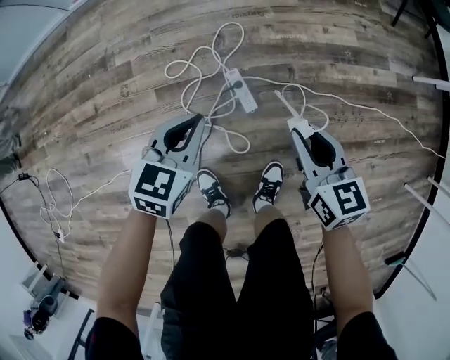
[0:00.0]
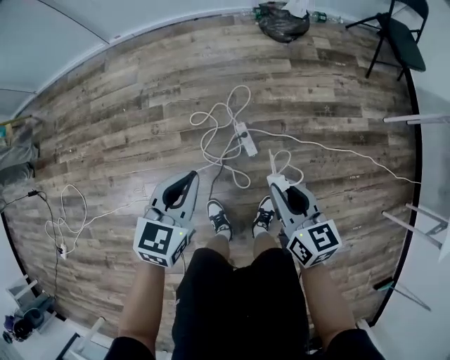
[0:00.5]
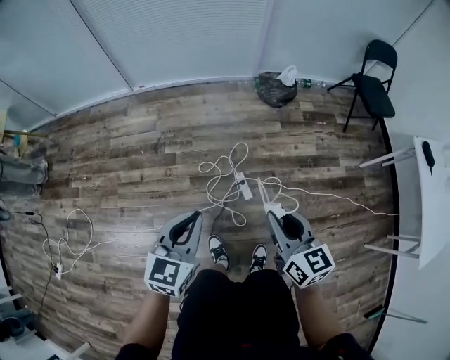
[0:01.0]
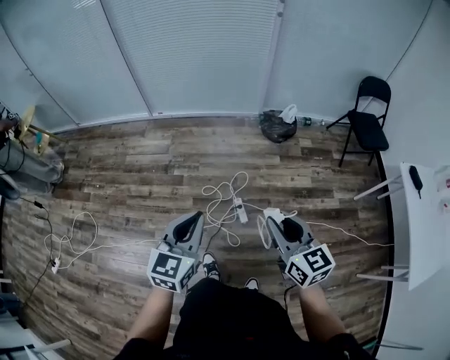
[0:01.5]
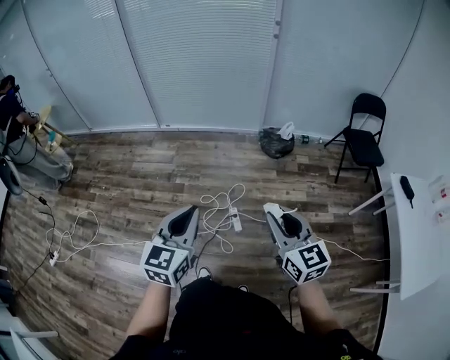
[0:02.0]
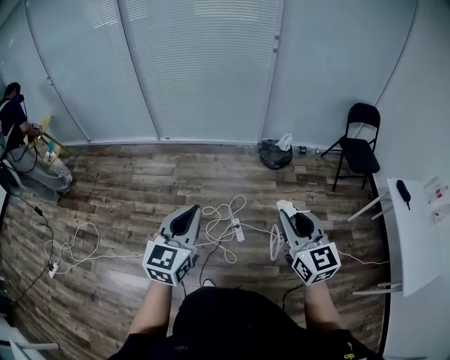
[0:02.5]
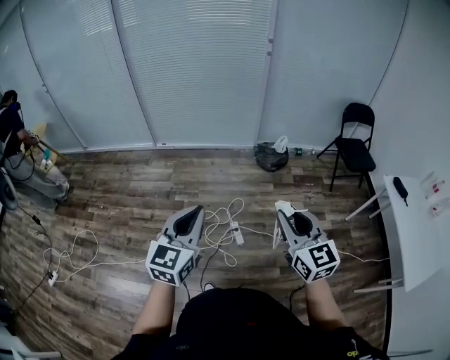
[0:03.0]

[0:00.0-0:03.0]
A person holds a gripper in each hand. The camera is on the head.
0:00.0 to 0:01.5: Both grippers move upward, some 60 cm. The left gripper turns by some 30 degrees, while the right gripper changes its angle by about 20 degrees.
0:01.5 to 0:03.0: The grippers both shift upward and backward by roughly 15 cm.

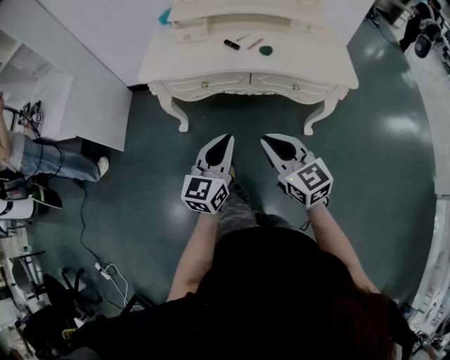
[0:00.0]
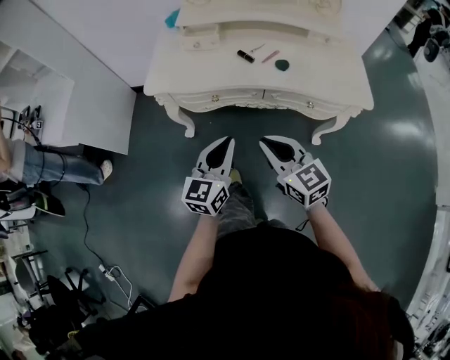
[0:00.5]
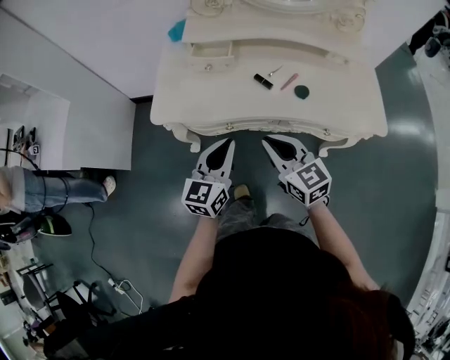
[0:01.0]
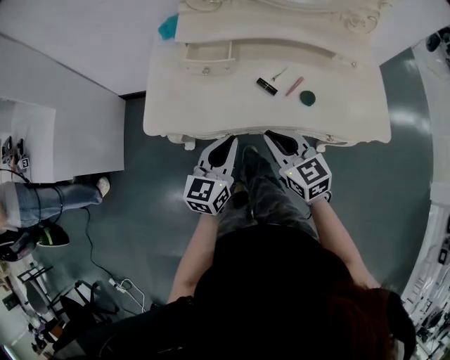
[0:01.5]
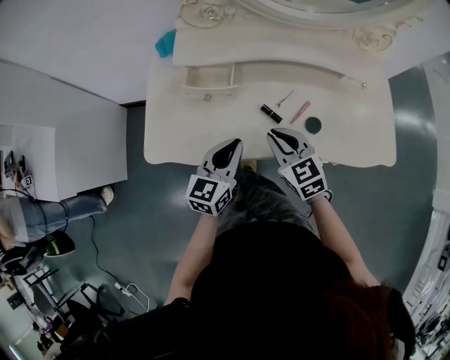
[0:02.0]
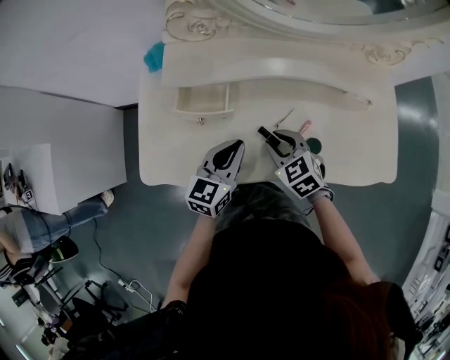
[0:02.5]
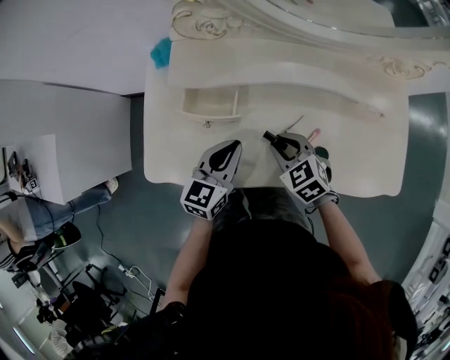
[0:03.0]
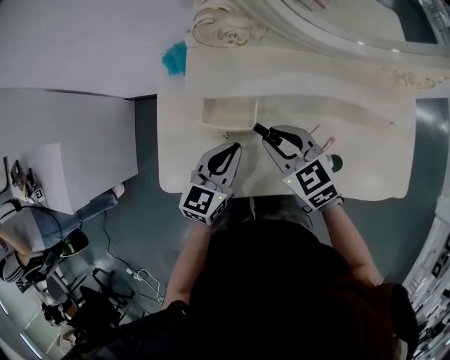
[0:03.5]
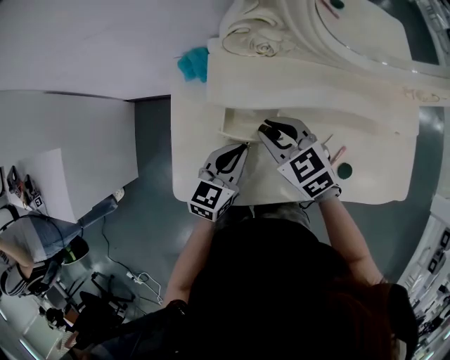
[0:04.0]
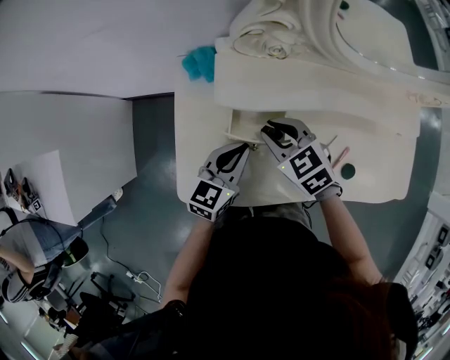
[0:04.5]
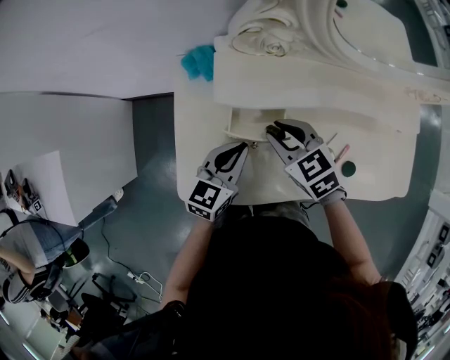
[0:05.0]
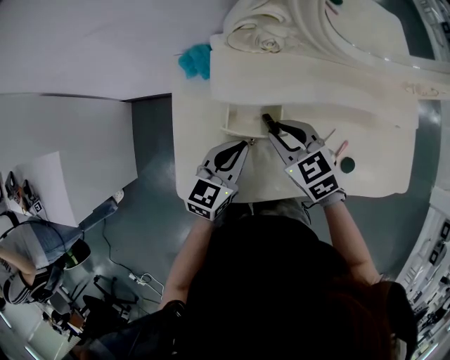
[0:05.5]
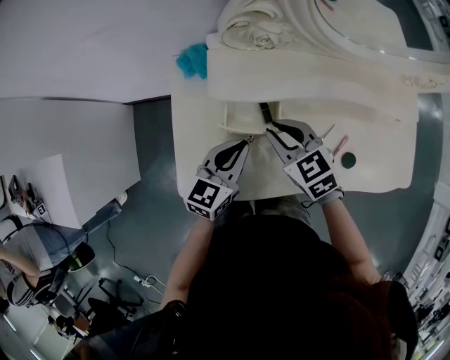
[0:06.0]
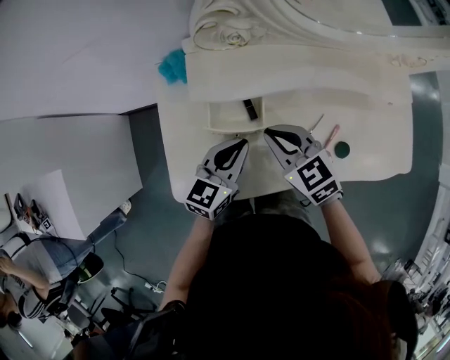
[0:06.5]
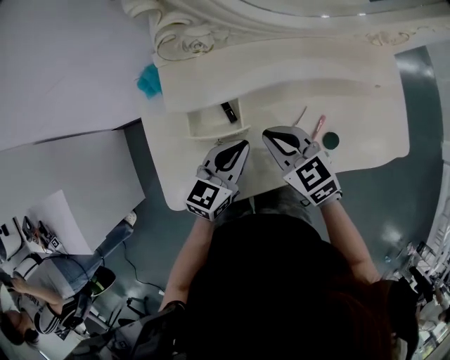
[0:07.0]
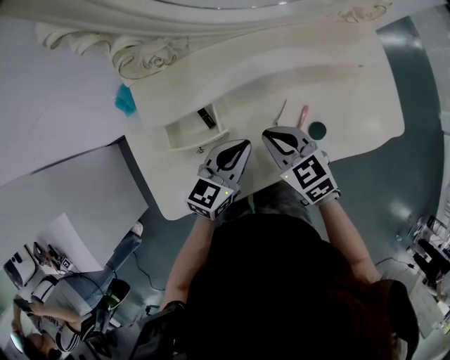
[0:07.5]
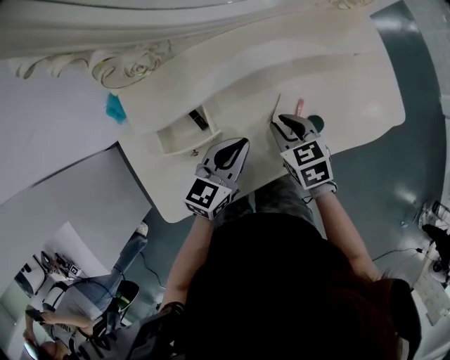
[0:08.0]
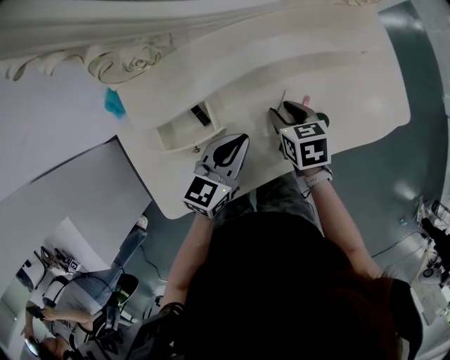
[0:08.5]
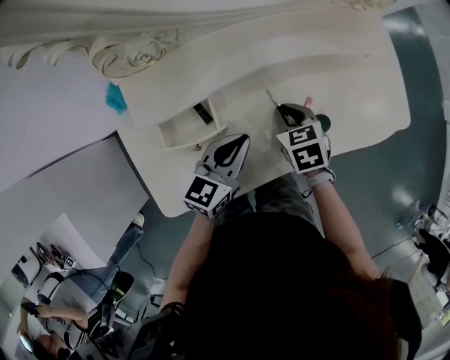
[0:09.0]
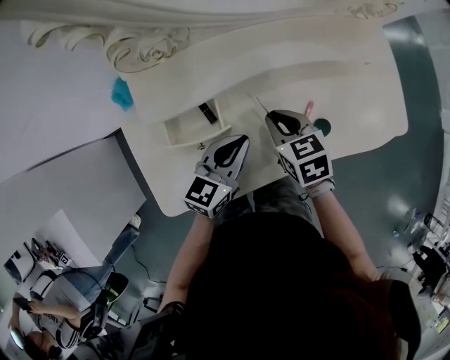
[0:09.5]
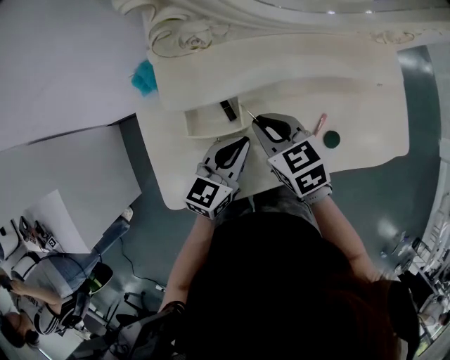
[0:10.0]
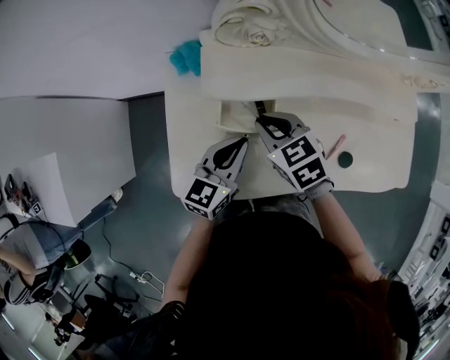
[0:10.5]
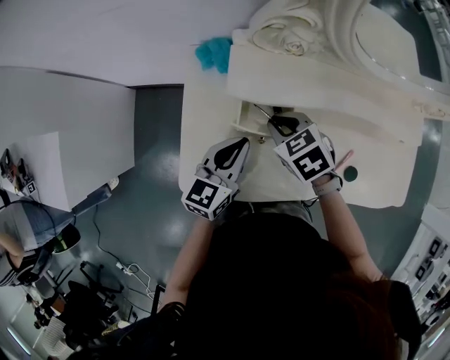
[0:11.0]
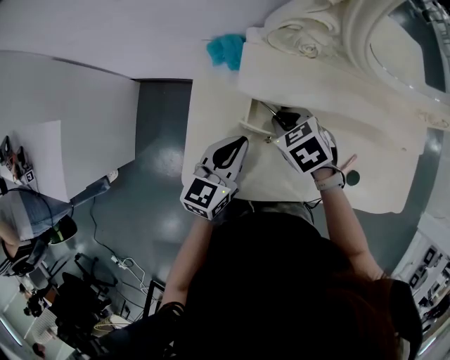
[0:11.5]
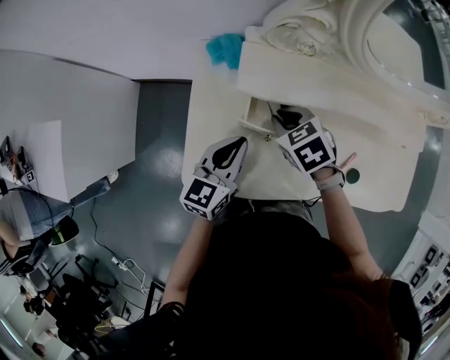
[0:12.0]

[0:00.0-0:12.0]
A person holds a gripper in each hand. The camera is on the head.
0:00.0 to 0:02.0: The grippers both shift forward by about 40 cm. The right gripper changes its angle by roughly 20 degrees.
0:02.0 to 0:04.0: The grippers both shift forward and to the left by about 20 cm.
0:04.0 to 0:06.0: There are only small adjustments of the grippers.
0:06.0 to 0:08.0: The left gripper moves approximately 15 cm, and rotates about 20 degrees, while the right gripper ends up about 20 cm from where it was, and swivels approximately 40 degrees.
0:08.0 to 0:10.0: The right gripper moves to the left and upward, approximately 15 cm. The left gripper goes roughly 5 cm to the left.
0:10.0 to 0:12.0: Both grippers move to the left, about 10 cm. The right gripper turns by about 30 degrees. The left gripper rotates roughly 20 degrees.

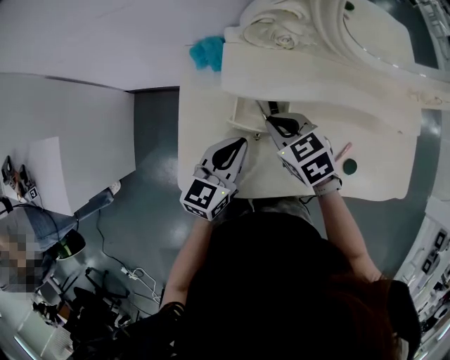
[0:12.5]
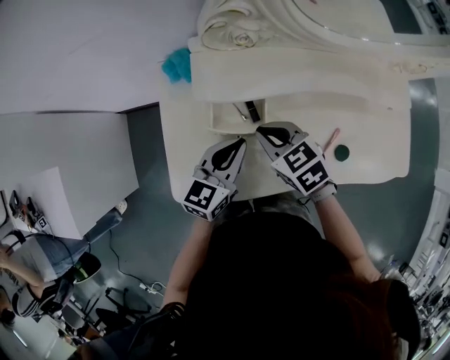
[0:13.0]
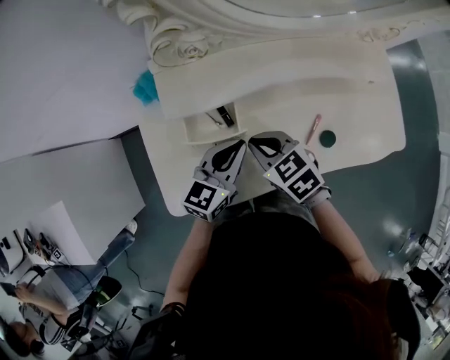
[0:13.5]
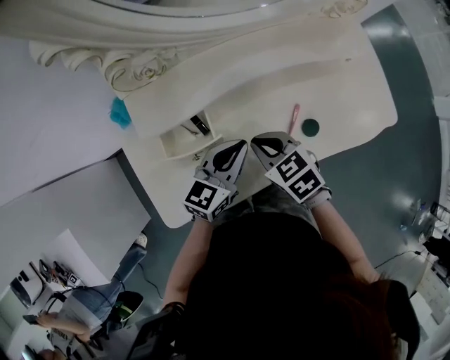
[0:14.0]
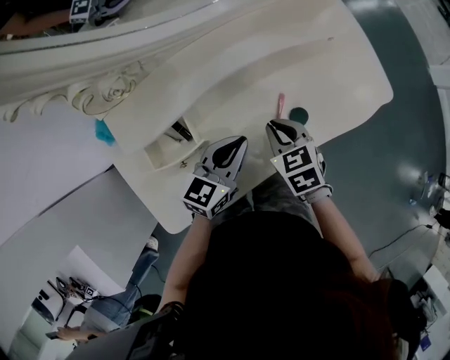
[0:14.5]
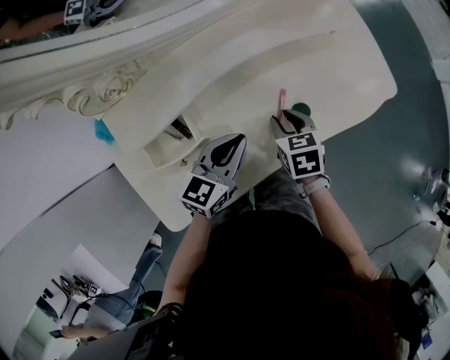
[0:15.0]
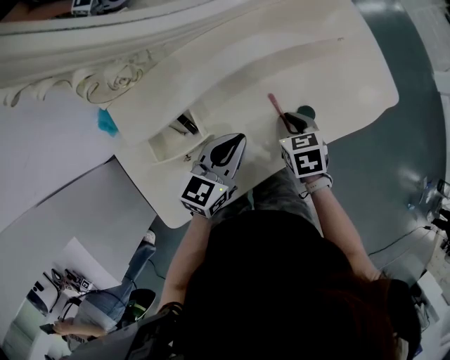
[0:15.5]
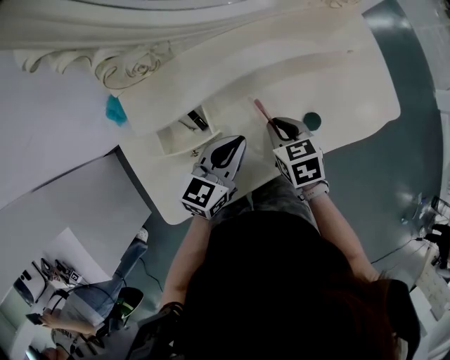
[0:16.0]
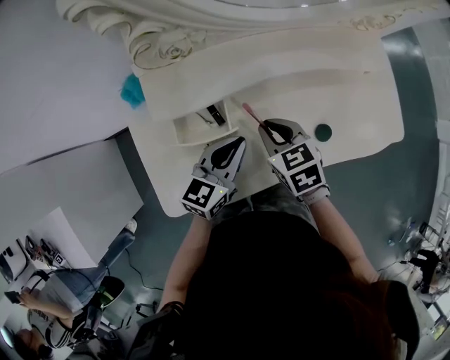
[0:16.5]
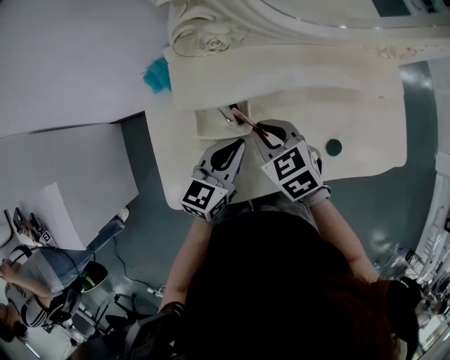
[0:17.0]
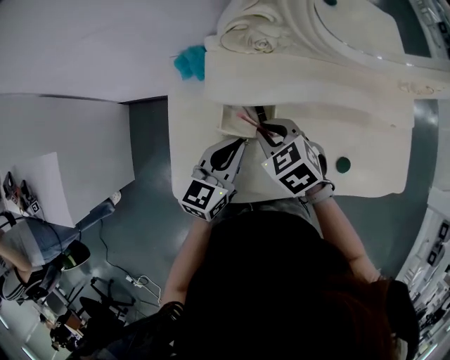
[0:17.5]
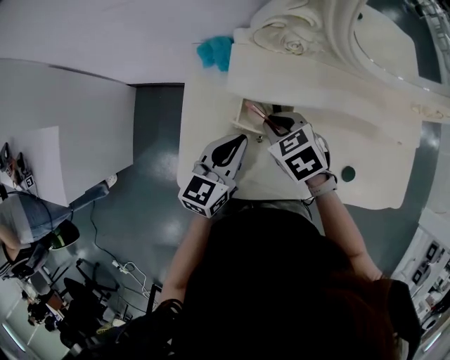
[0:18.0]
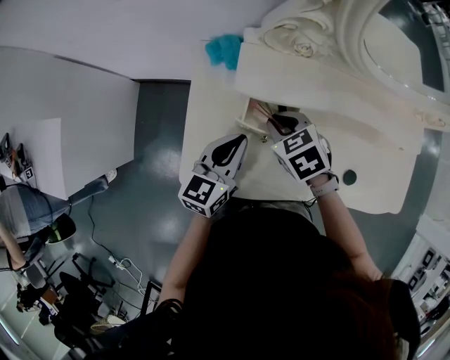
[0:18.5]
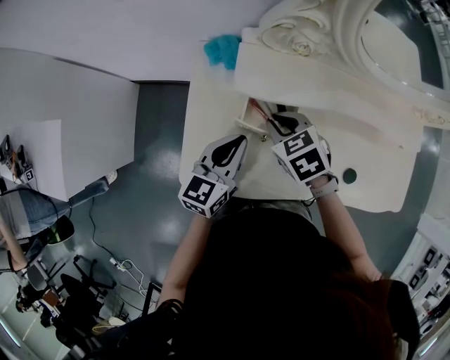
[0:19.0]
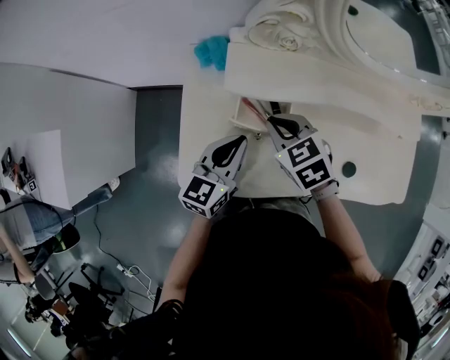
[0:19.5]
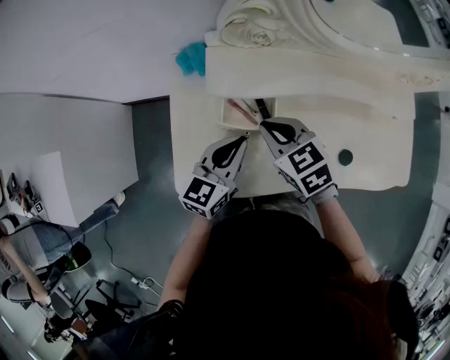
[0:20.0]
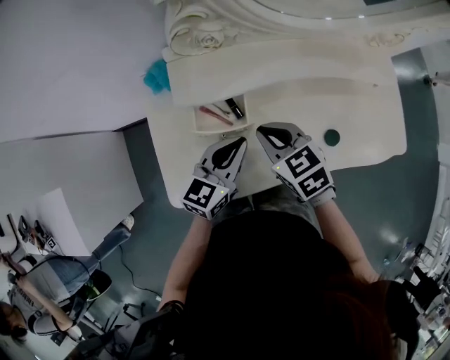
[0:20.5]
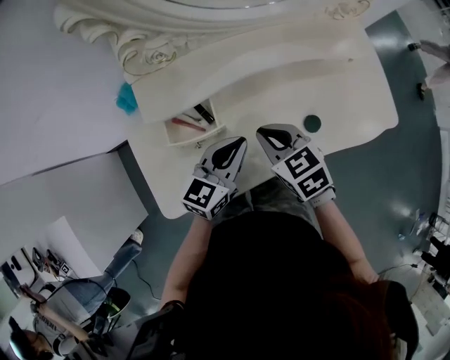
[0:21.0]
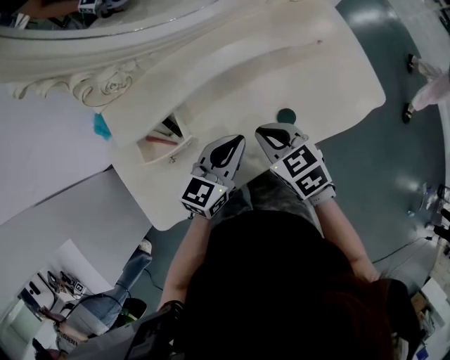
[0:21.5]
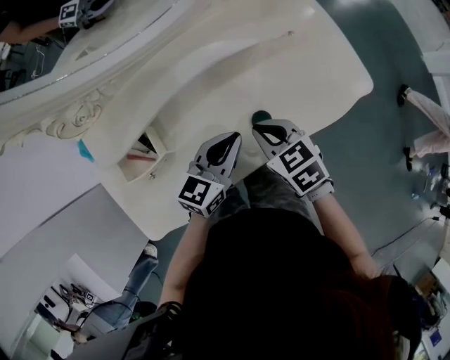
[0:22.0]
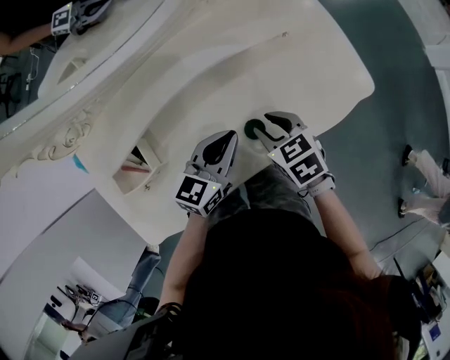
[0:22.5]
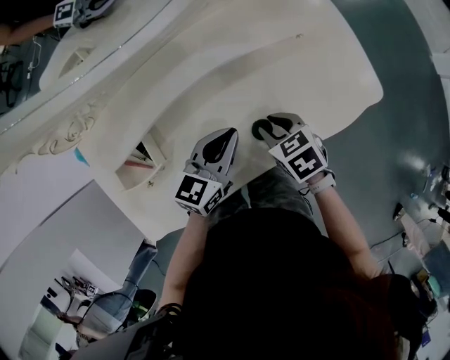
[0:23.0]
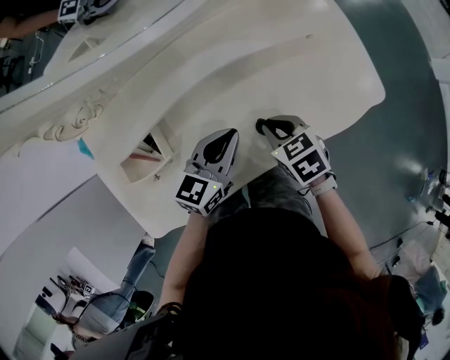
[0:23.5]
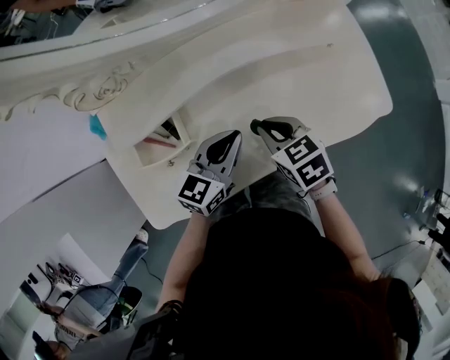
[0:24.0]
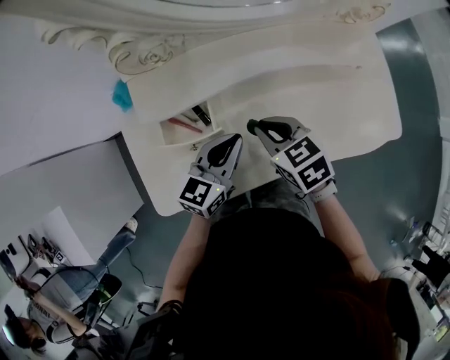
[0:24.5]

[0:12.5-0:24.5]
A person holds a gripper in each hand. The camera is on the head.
0:12.5 to 0:14.5: The right gripper changes place by approximately 25 cm, and changes its angle by some 40 degrees; the left gripper changes place by roughly 20 cm, and rotates about 40 degrees.
0:14.5 to 0:16.5: The two grippers go some 10 cm to the left.
0:16.5 to 0:18.5: The right gripper moves some 15 cm, and swivels roughly 30 degrees. The left gripper shifts by some 15 cm, and changes its angle by some 30 degrees.
0:18.5 to 0:20.5: The right gripper goes roughly 10 cm to the right and backward, and rotates some 20 degrees; the left gripper travels to the right by approximately 10 cm, and turns by approximately 20 degrees.
0:20.5 to 0:22.5: Both grippers travel together to the right, about 25 cm. The left gripper changes its angle by about 20 degrees; the right gripper changes its angle by about 30 degrees, and opens.
0:22.5 to 0:24.5: Both grippers travel together to the left, about 20 cm. The right gripper closes.
